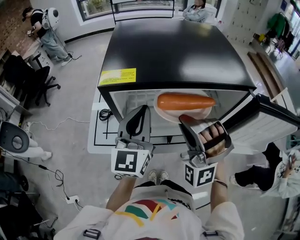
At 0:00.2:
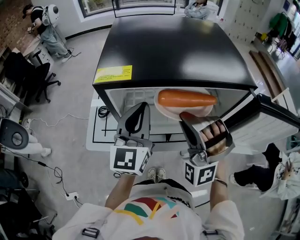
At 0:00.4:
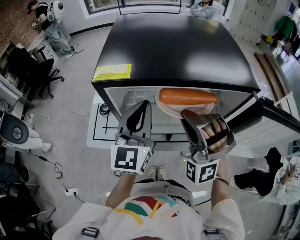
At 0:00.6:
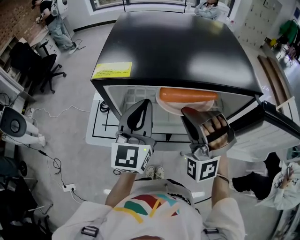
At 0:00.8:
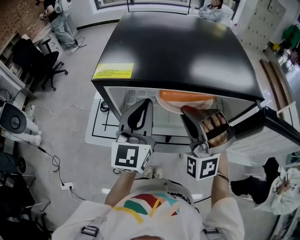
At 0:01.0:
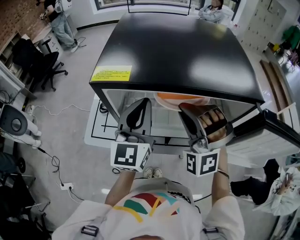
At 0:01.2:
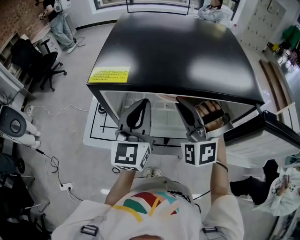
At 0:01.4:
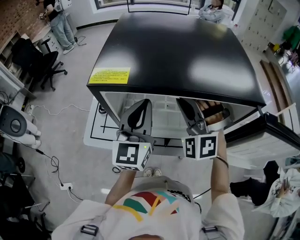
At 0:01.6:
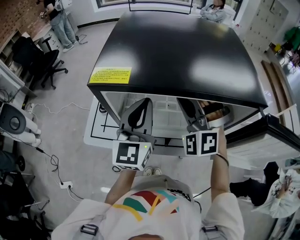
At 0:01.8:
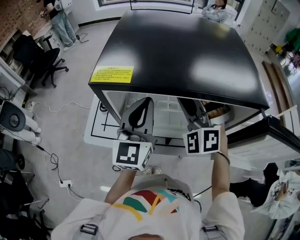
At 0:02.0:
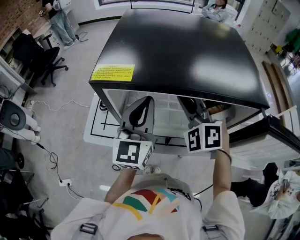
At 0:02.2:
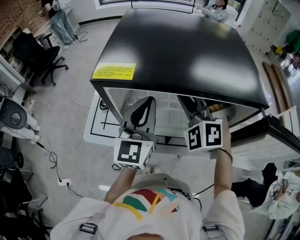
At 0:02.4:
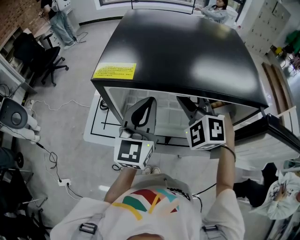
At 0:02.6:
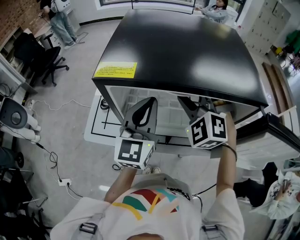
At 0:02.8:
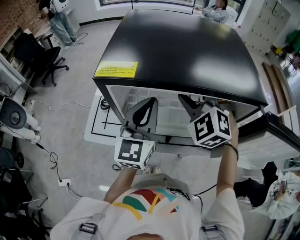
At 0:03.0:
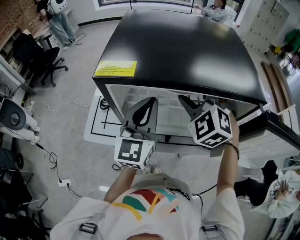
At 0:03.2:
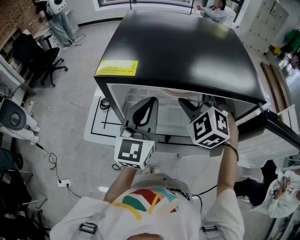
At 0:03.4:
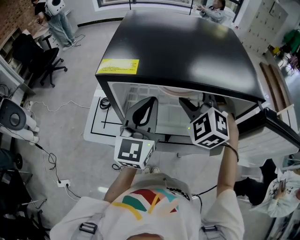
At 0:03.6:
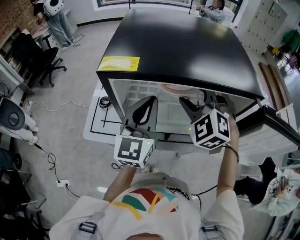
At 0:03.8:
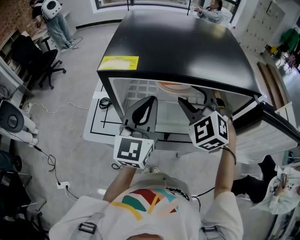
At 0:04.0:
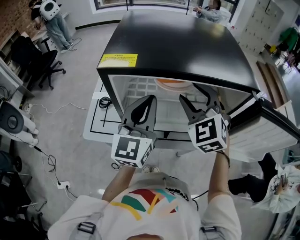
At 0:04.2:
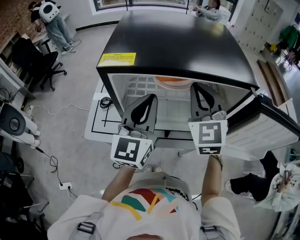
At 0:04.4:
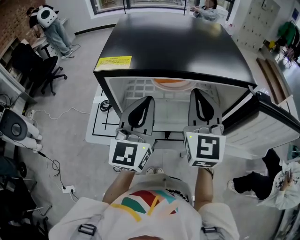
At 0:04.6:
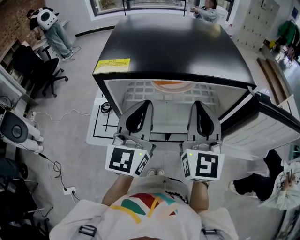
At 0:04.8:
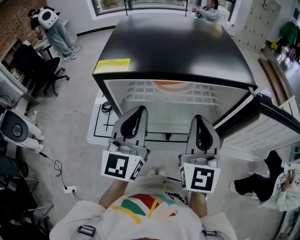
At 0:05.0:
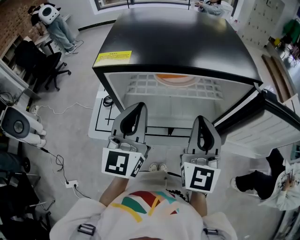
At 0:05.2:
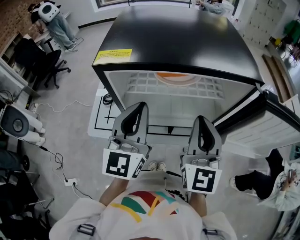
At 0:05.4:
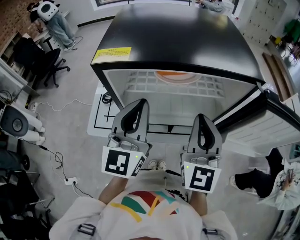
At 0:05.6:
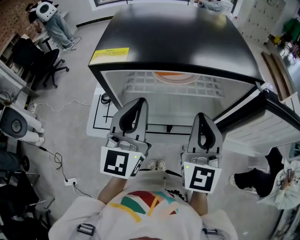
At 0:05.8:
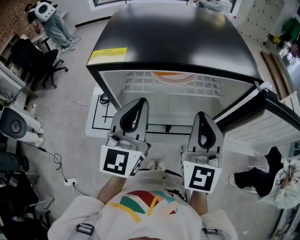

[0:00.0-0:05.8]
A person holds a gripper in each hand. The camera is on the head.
0:02.8 to 0:04.4: The left gripper moves approximately 5 cm.

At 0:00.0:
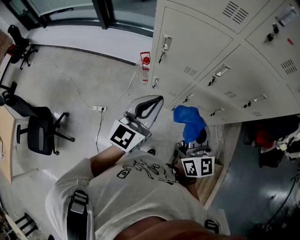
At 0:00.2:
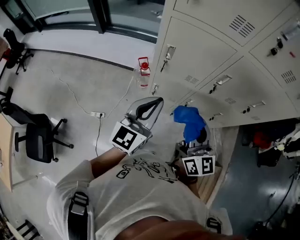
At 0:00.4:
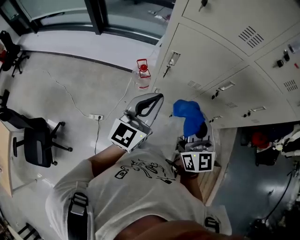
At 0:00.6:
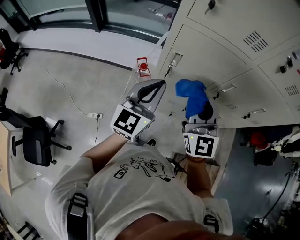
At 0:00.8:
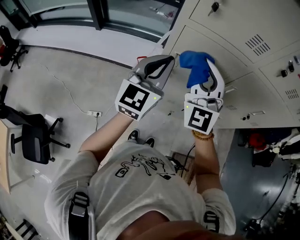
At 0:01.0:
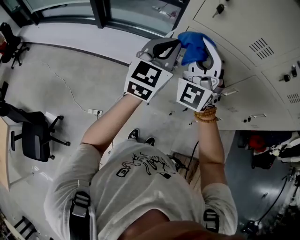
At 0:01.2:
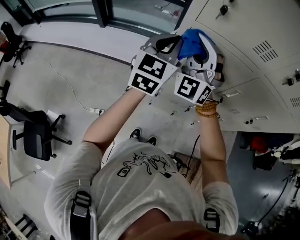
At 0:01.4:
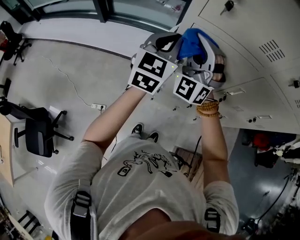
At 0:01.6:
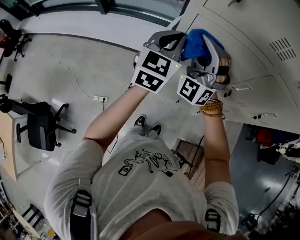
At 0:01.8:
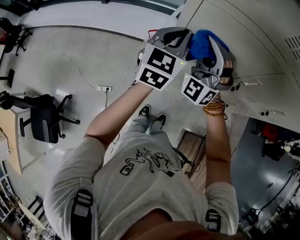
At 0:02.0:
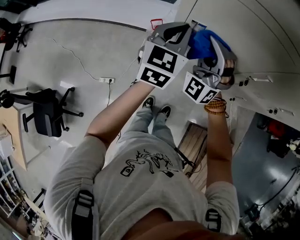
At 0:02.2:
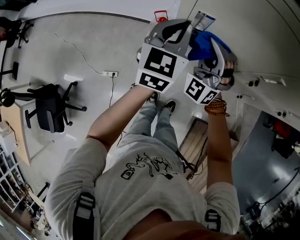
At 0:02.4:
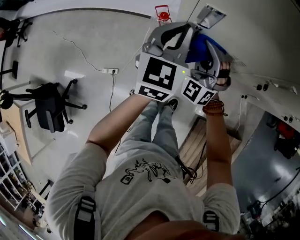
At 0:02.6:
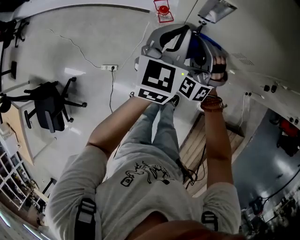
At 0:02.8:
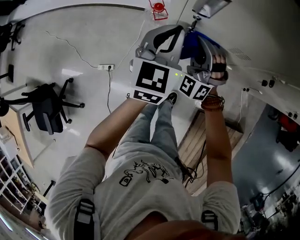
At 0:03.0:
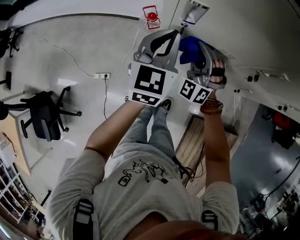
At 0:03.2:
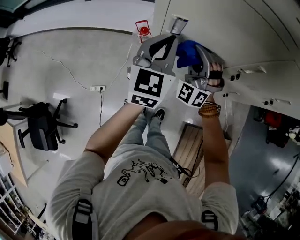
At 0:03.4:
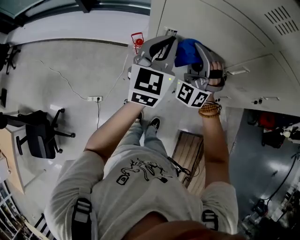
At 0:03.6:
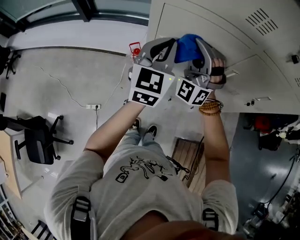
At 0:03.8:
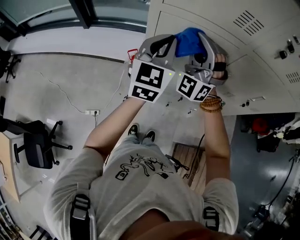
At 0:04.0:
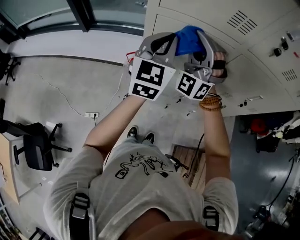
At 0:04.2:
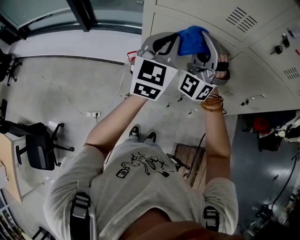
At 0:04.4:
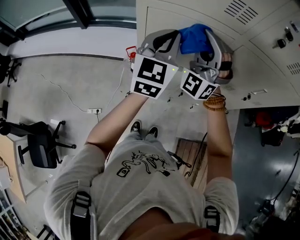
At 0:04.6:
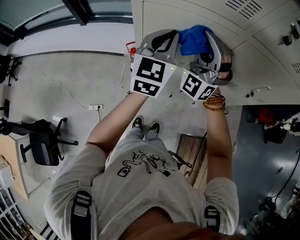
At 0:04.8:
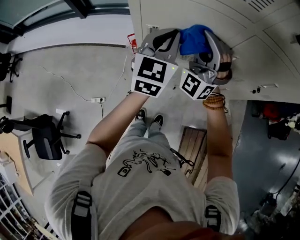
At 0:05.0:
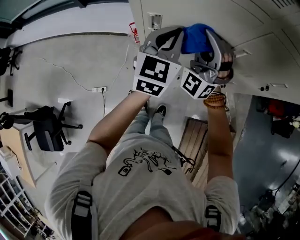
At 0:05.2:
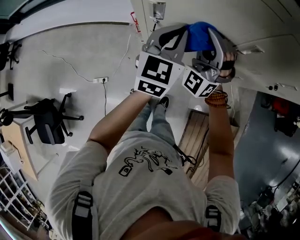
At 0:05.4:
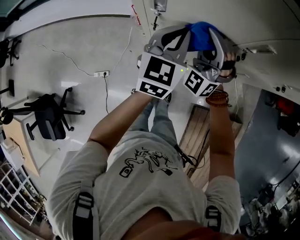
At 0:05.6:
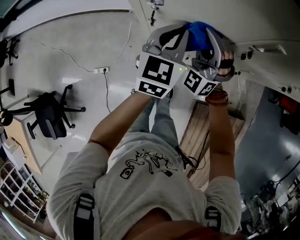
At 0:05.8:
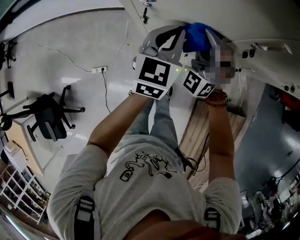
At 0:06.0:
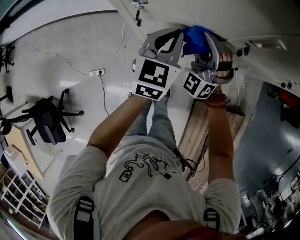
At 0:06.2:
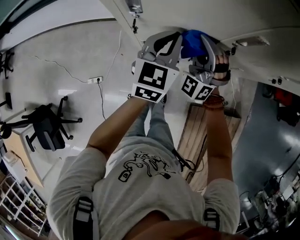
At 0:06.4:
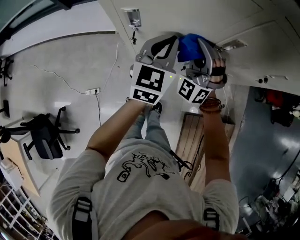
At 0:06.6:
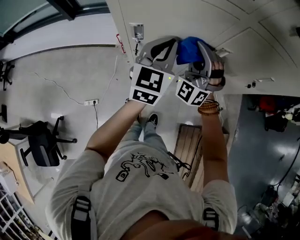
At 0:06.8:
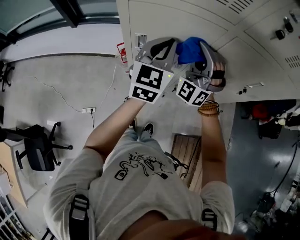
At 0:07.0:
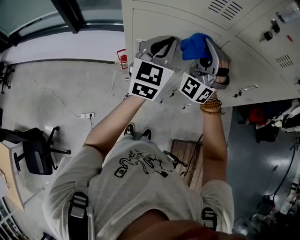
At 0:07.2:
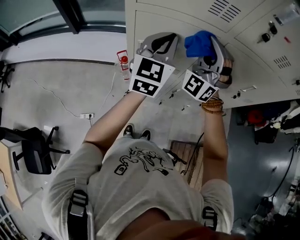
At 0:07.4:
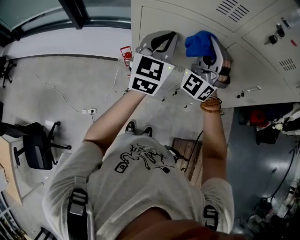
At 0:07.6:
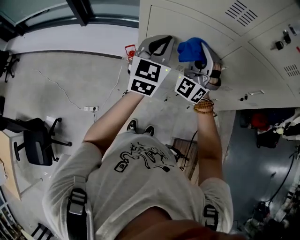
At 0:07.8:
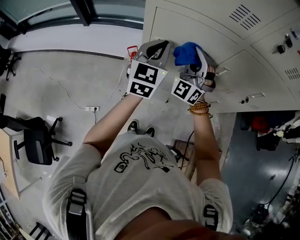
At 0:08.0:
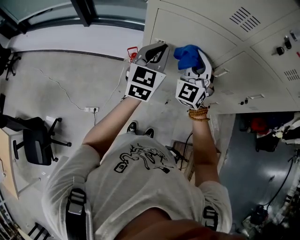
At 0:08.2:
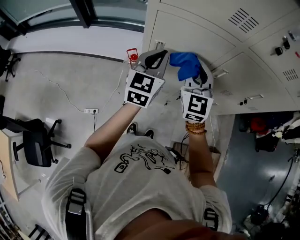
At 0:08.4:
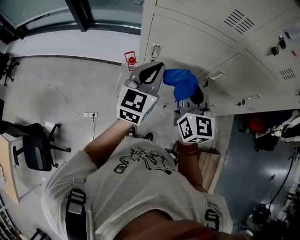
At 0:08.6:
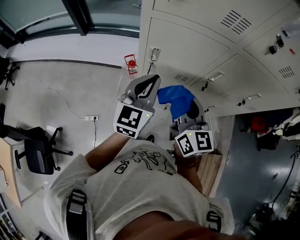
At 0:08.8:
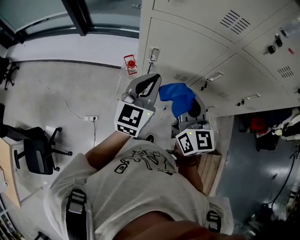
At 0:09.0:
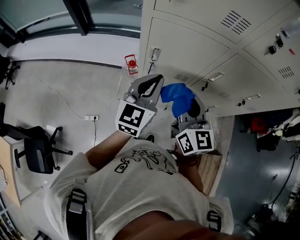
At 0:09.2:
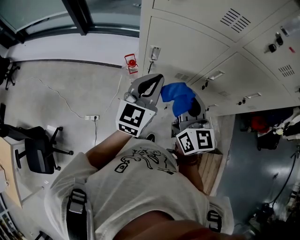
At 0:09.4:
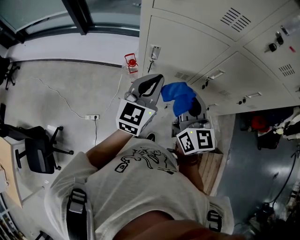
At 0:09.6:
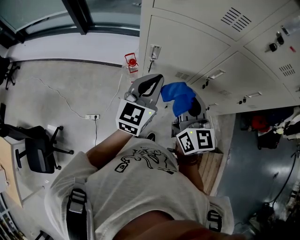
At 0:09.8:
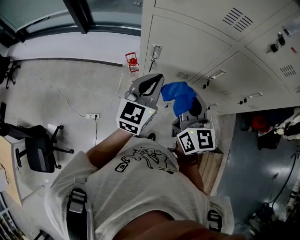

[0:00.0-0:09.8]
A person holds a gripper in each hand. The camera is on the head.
0:00.0 to 0:01.4: Both grippers move forward and to the left, about 30 cm. The right gripper rotates around the line of its fingers by roughly 80 degrees, counterclockwise from behind.
0:01.4 to 0:02.8: The grippers both shift downward by some 30 cm. The right gripper rotates approximately 20 degrees.
0:02.8 to 0:04.2: The two grippers go some 30 cm upward. The left gripper rotates some 20 degrees. The right gripper turns by about 30 degrees.
0:04.2 to 0:05.6: The two grippers go some 30 cm downward. The left gripper turns by approximately 20 degrees.
0:05.6 to 0:07.0: Both grippers travel together upward, roughly 25 cm.
0:07.0 to 0:08.4: The right gripper moves backward and downward, approximately 10 cm, and twists approximately 80 degrees clockwise, seen from behind; the left gripper heads backward and to the left, covering about 10 cm.
0:08.4 to 0:09.8: There are only small adjustments of the grippers.

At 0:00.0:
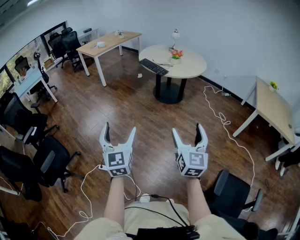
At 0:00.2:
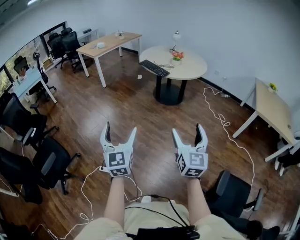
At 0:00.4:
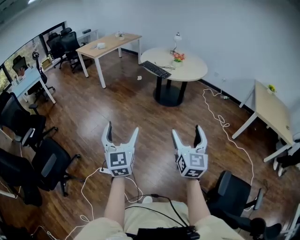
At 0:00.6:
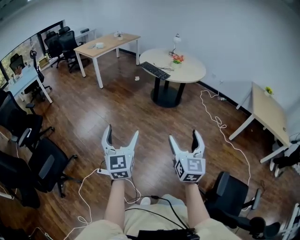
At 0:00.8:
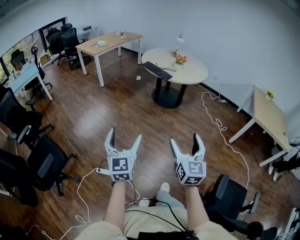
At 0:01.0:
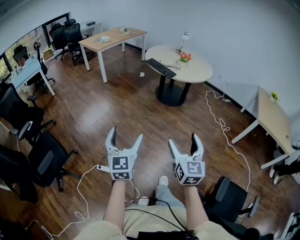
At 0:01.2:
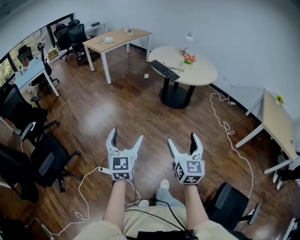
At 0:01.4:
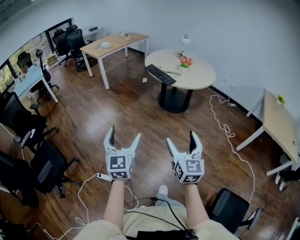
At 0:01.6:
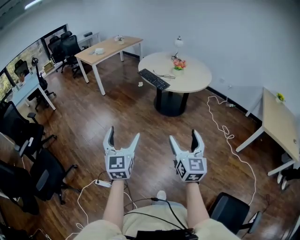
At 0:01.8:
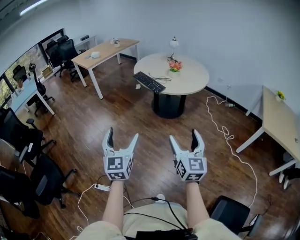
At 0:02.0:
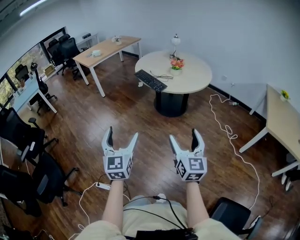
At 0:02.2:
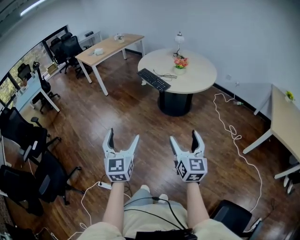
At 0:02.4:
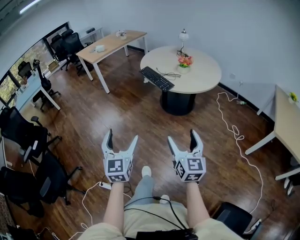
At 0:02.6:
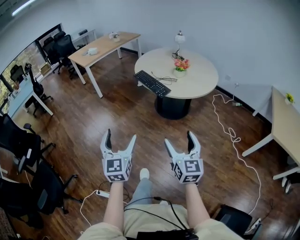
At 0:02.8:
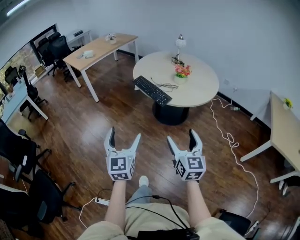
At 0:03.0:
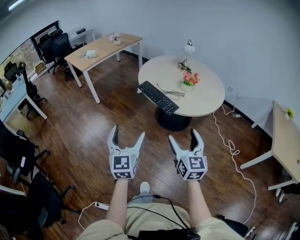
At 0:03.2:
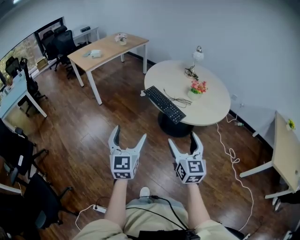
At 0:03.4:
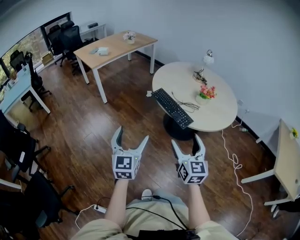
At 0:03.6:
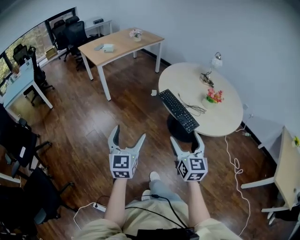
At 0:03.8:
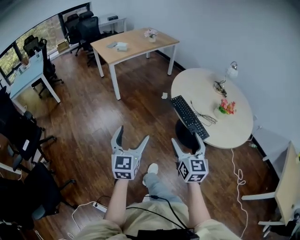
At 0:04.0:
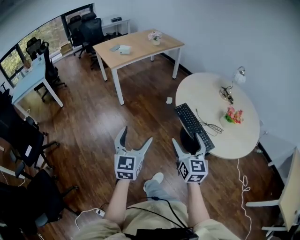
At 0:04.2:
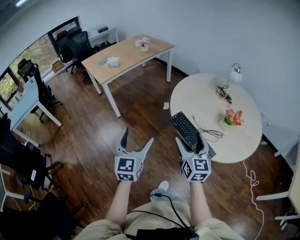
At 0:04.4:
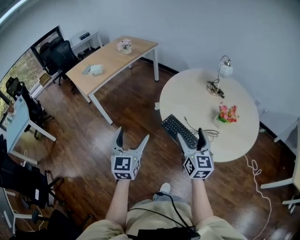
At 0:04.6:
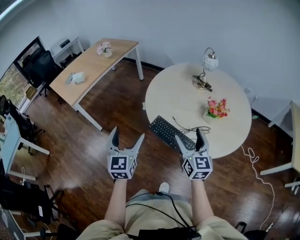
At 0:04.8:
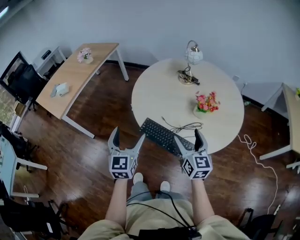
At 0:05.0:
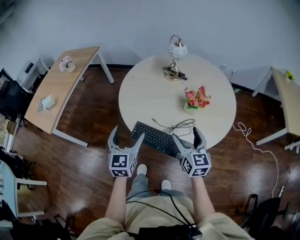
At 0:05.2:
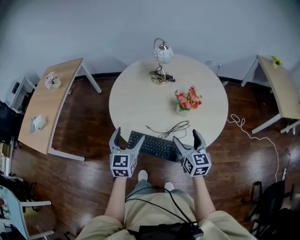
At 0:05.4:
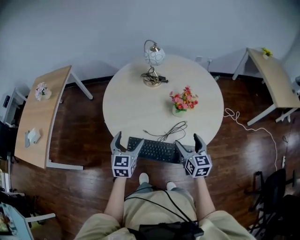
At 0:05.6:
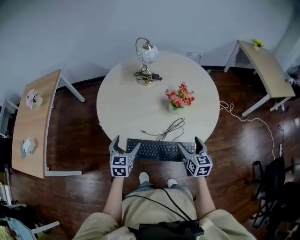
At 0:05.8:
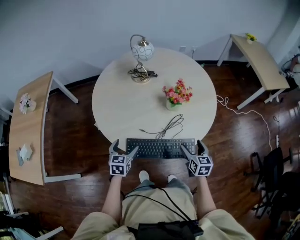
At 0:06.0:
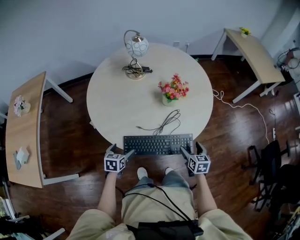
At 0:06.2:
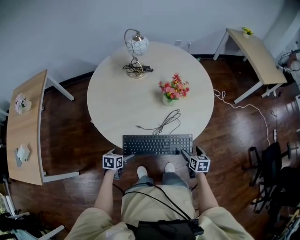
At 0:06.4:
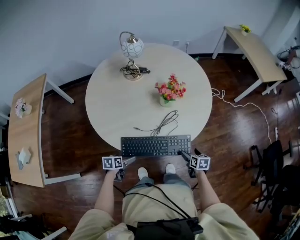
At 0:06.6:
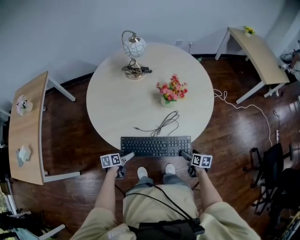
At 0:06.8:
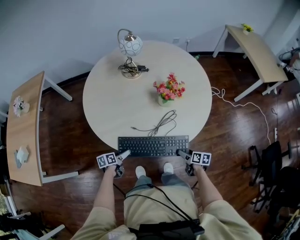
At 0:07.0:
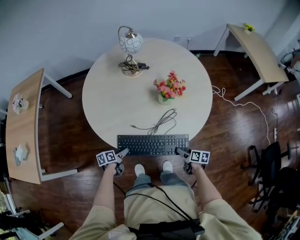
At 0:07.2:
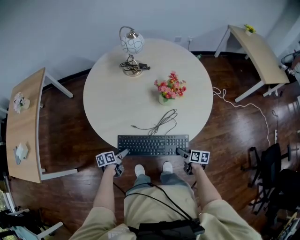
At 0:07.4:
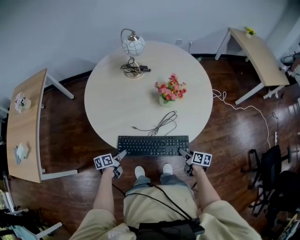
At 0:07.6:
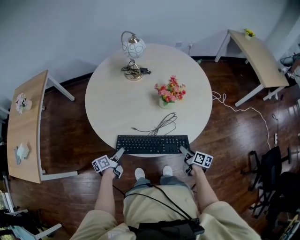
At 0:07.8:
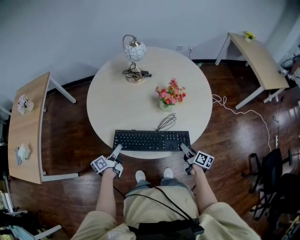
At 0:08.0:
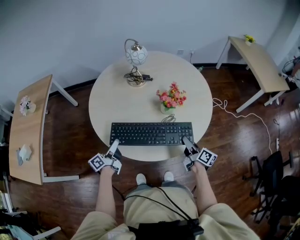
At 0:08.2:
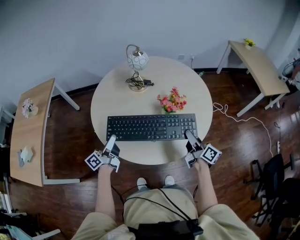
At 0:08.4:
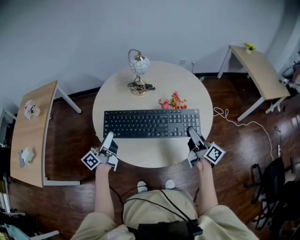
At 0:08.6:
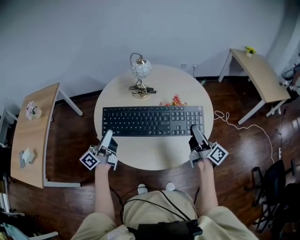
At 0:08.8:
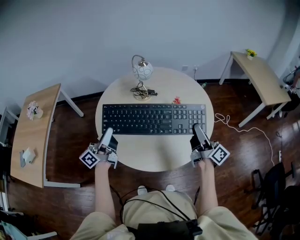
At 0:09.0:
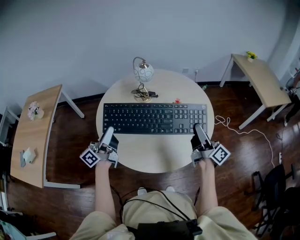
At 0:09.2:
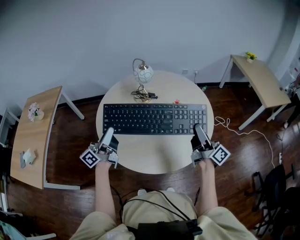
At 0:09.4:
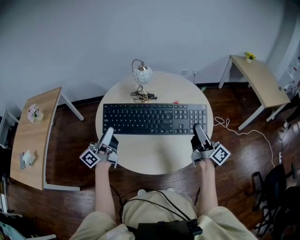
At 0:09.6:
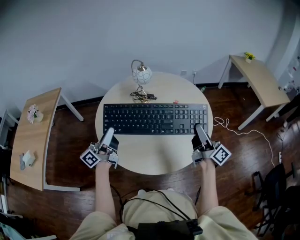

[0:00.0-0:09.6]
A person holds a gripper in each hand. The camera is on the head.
0:00.0 to 0:01.6: The grippers both shift forward by roughly 20 cm.
0:01.6 to 0:03.2: The pair of grippers is taken forward, some 40 cm.
0:03.2 to 0:04.8: Both grippers are carried approximately 50 cm. The right gripper changes its angle by about 20 degrees.
0:04.8 to 0:06.4: Both grippers travel together downward, about 35 cm. The left gripper angles its fingers downward, by roughly 40 degrees. The right gripper angles its fingers downward, by some 40 degrees.
0:06.4 to 0:08.0: The grippers both shift upward and forward by roughly 20 cm. The left gripper tilts its fingers approximately 50 degrees upward, and closes. The right gripper points its fingers roughly 40 degrees further upward, and closes its fingers.
0:08.0 to 0:09.6: The grippers both shift upward by approximately 25 cm. The right gripper tilts its fingers roughly 30 degrees upward; the left gripper swivels roughly 30 degrees.
